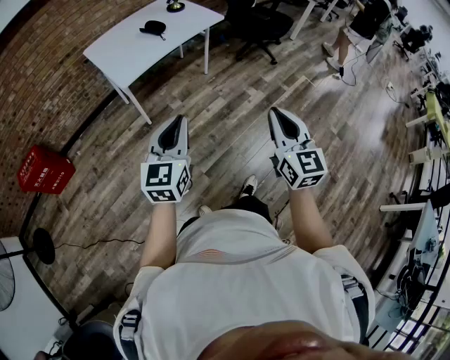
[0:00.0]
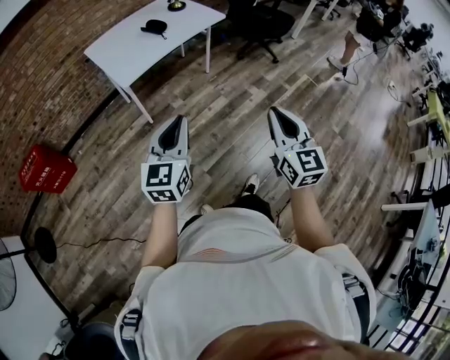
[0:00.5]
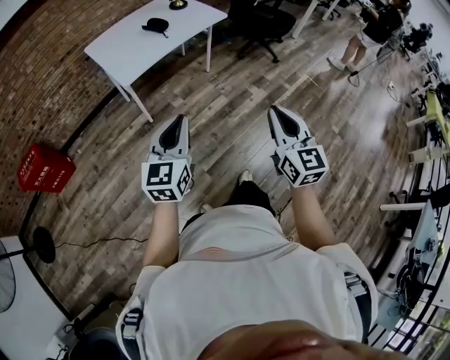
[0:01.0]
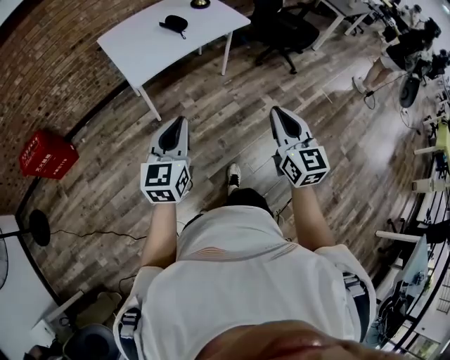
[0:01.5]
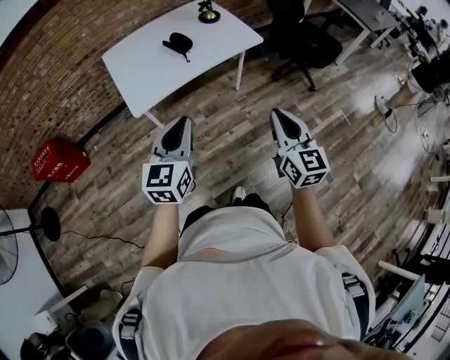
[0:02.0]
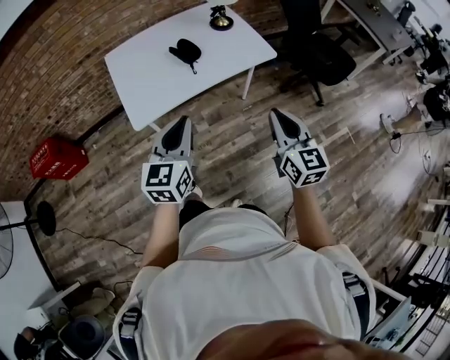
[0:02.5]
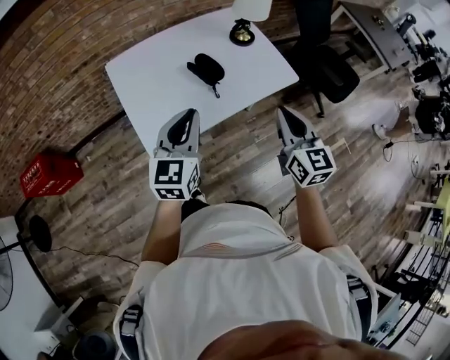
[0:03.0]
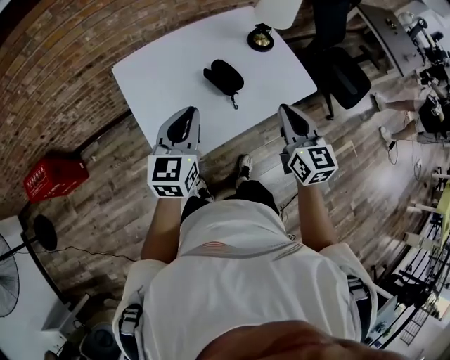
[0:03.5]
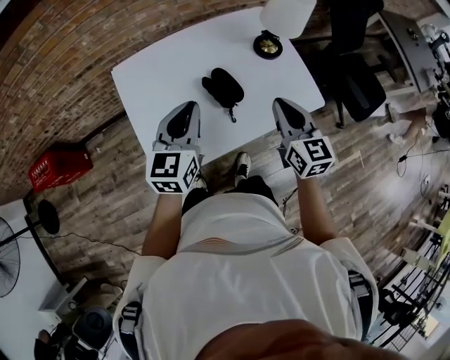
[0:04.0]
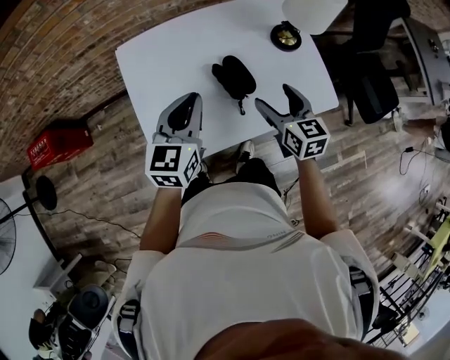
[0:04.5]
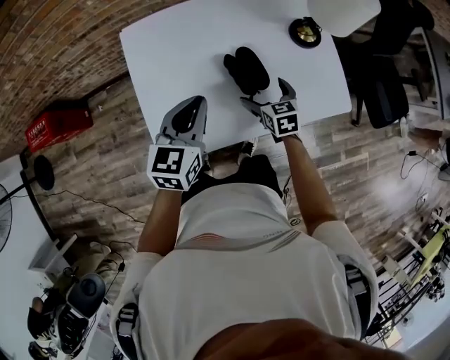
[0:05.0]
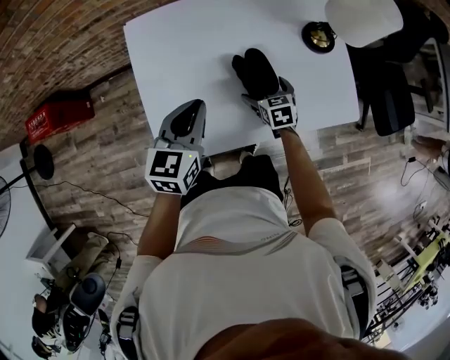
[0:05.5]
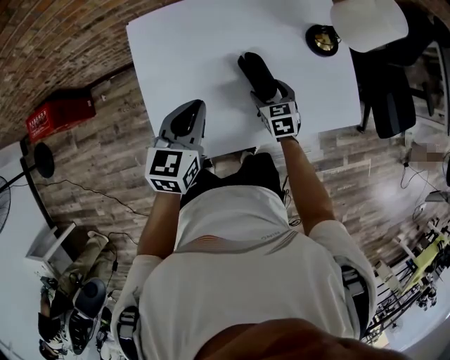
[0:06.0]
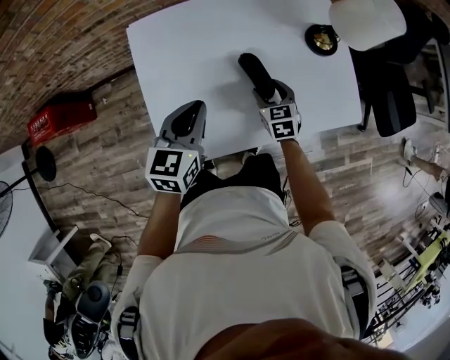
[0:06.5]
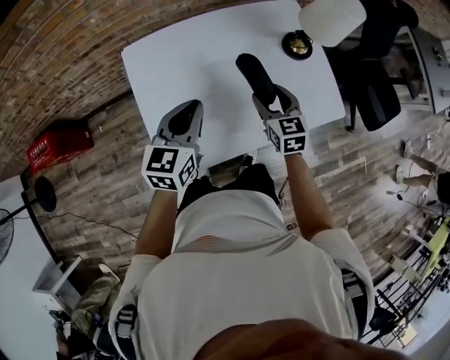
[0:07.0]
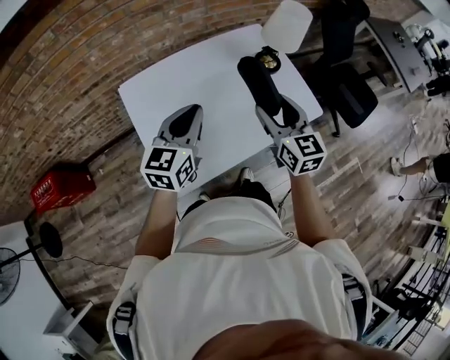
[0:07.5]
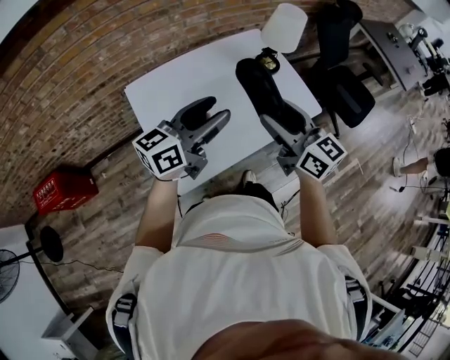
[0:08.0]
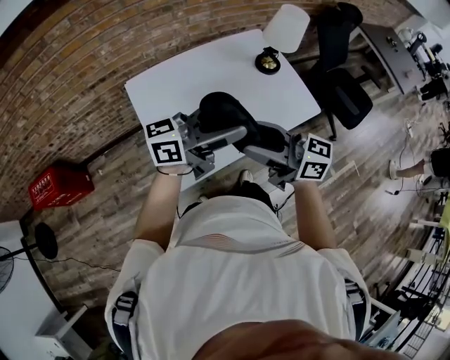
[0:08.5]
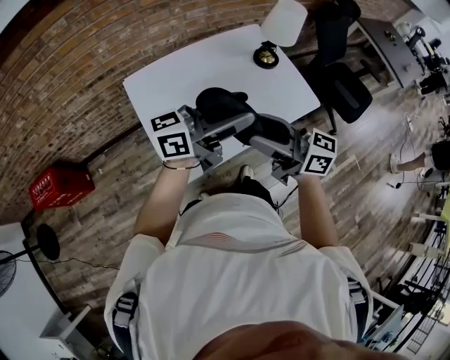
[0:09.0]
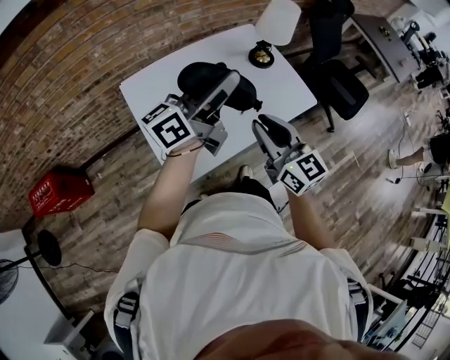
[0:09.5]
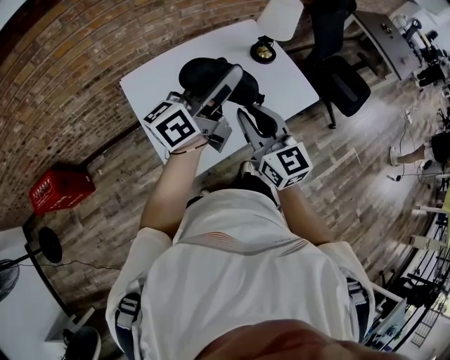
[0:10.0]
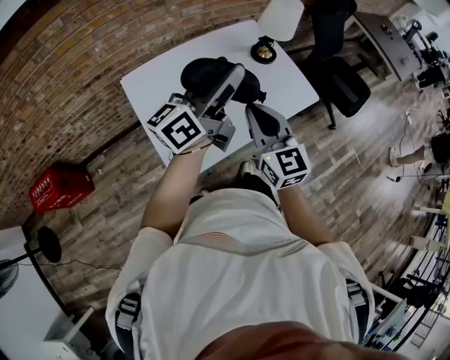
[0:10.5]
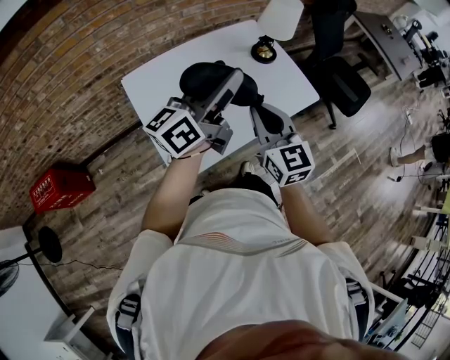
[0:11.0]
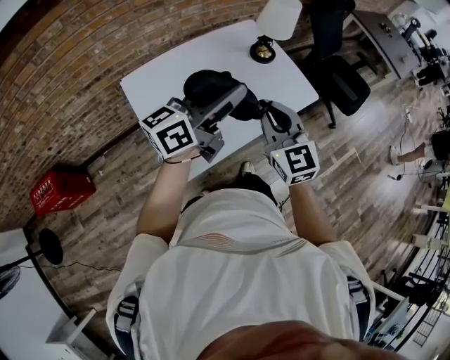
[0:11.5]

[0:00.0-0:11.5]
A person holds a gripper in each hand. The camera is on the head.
0:00.0 to 0:02.0: The grippers both shift forward by roughly 30 cm.
0:02.0 to 0:04.0: The two grippers travel together, forward, some 50 cm.
0:04.0 to 0:06.0: The left gripper travels downward and to the left by approximately 10 cm. Meanwhile the right gripper goes about 30 cm downward, tips its fingers downward by roughly 30 degrees, and opens up.
0:06.0 to 0:07.5: The left gripper moves upward, roughly 10 cm, and swivels approximately 20 degrees, while the right gripper shifts approximately 30 cm upward, and tips its fingers upward by roughly 30 degrees.
0:07.5 to 0:09.5: The right gripper shifts by approximately 15 cm, while the left gripper goes approximately 10 cm upward, tilts its fingers roughly 30 degrees upward, and opens.
0:09.5 to 0:11.5: The right gripper changes its angle by roughly 20 degrees.

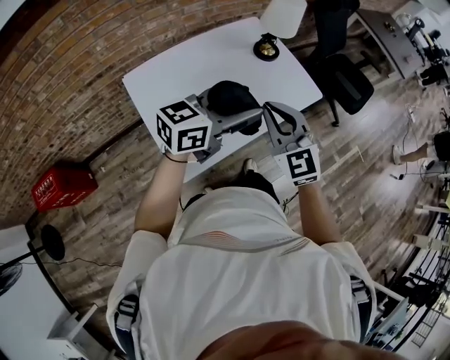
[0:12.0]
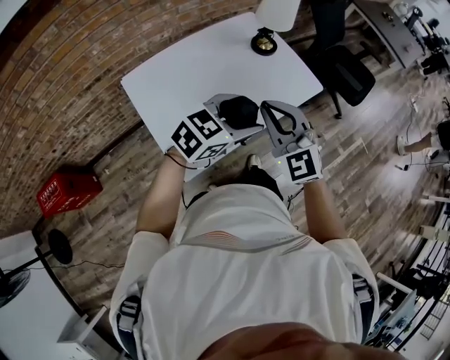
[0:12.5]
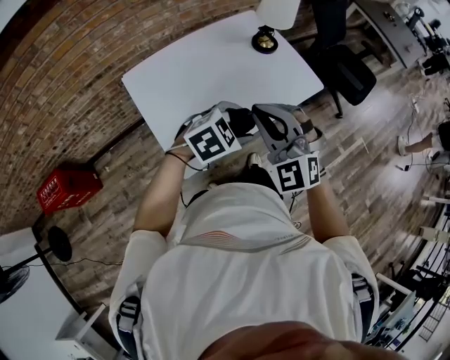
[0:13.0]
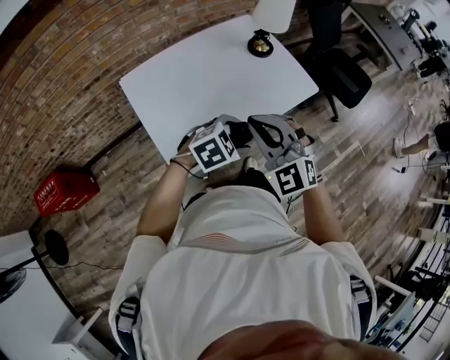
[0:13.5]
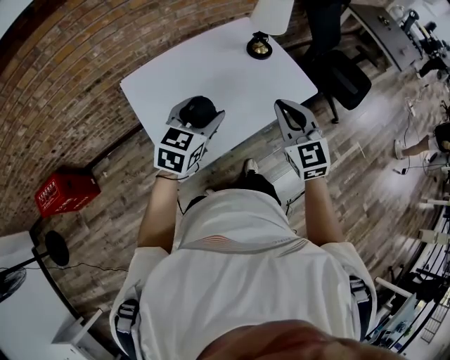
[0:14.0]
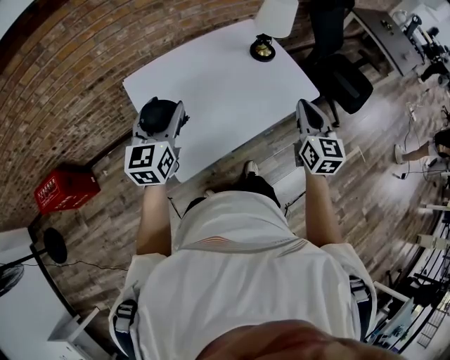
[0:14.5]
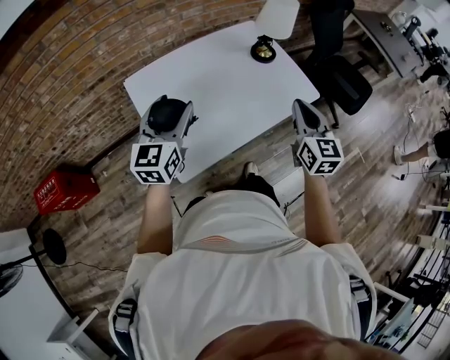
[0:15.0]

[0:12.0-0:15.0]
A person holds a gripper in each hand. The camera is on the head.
0:12.0 to 0:13.5: The right gripper goes some 5 cm backward, and rotates approximately 20 degrees. Meanwhile the left gripper moves downward, some 15 cm, and points its fingers roughly 50 degrees further downward.
0:13.5 to 0:15.0: The right gripper shifts approximately 15 cm to the right and forward, and twists some 50 degrees clockwise, seen from behind, while the left gripper travels to the left and upward by approximately 25 cm, and points its fingers about 40 degrees further upward.

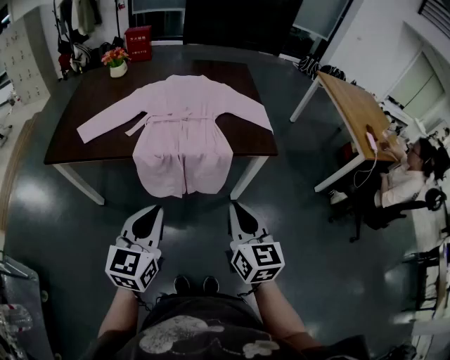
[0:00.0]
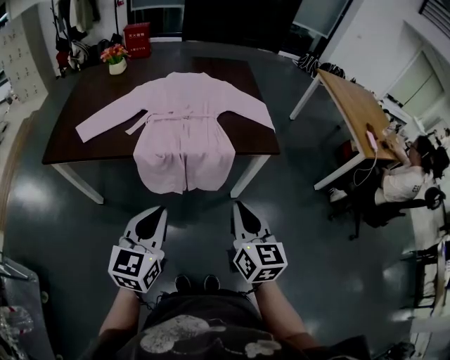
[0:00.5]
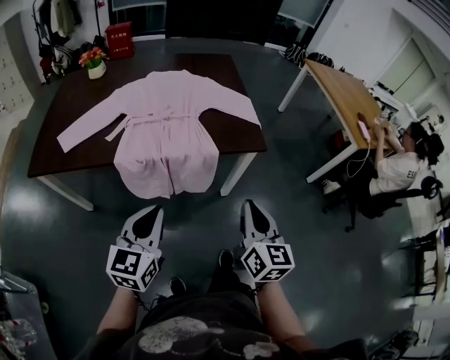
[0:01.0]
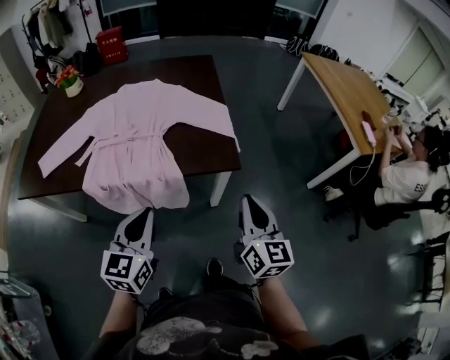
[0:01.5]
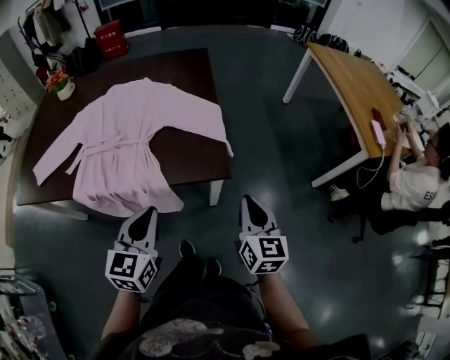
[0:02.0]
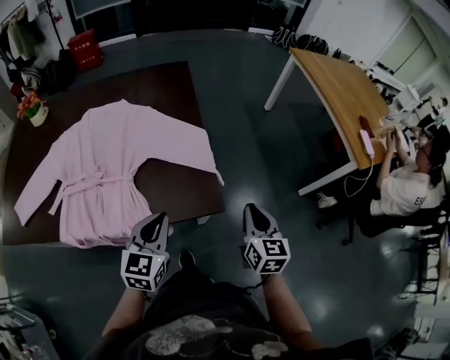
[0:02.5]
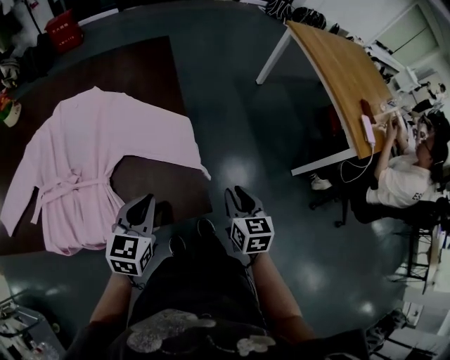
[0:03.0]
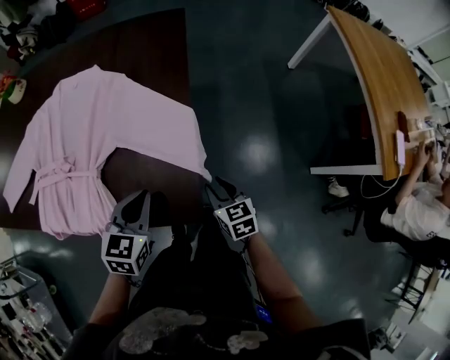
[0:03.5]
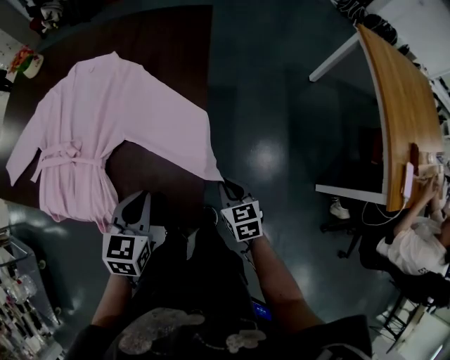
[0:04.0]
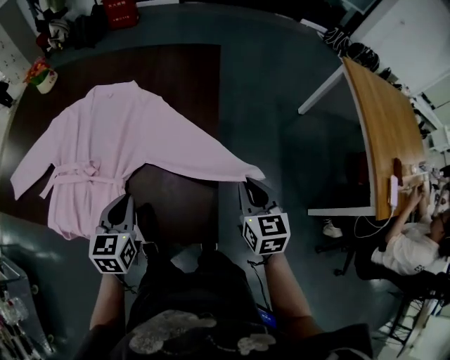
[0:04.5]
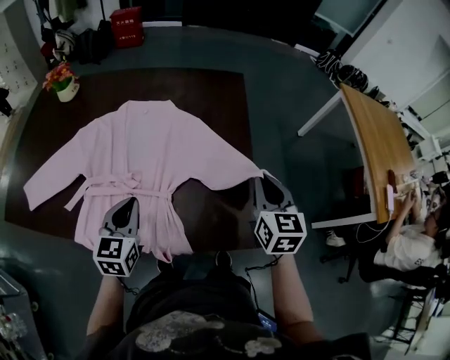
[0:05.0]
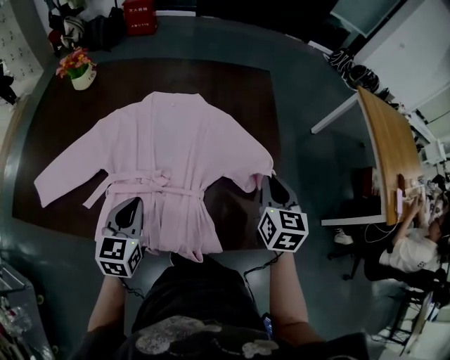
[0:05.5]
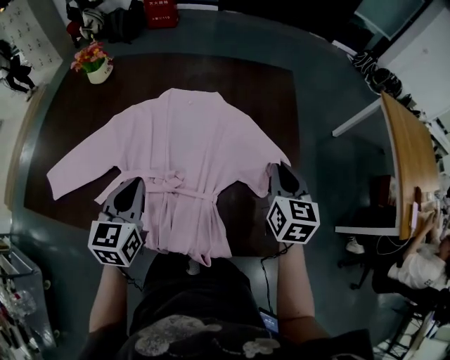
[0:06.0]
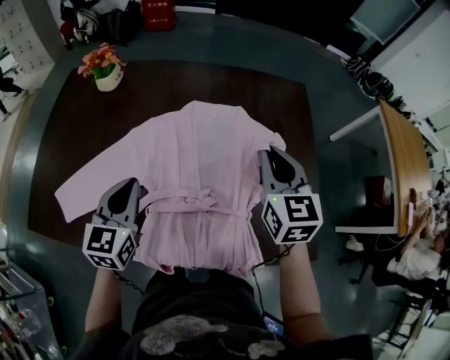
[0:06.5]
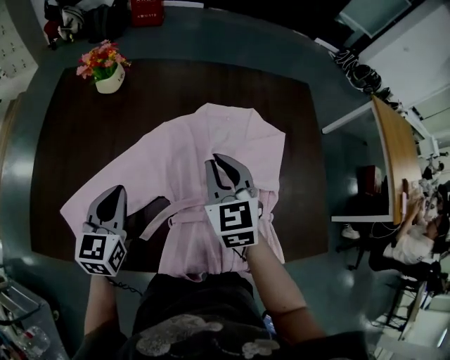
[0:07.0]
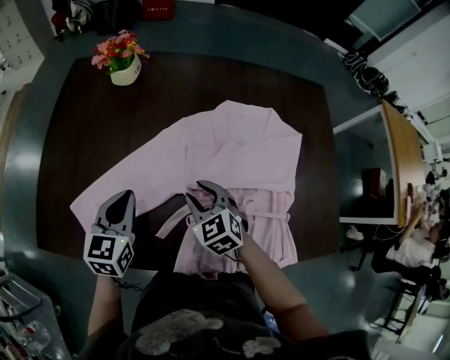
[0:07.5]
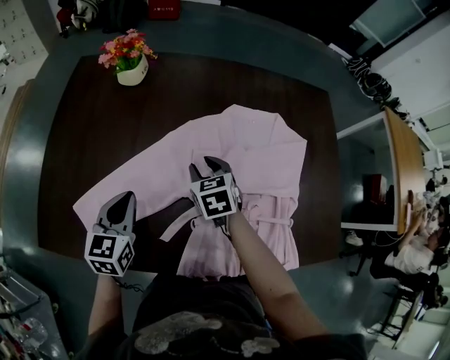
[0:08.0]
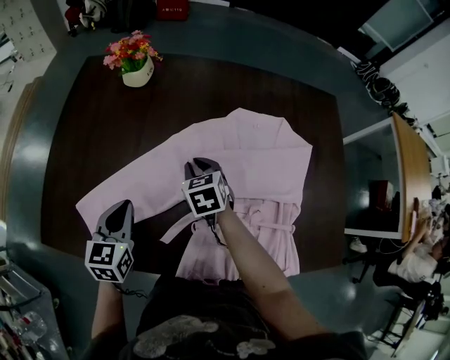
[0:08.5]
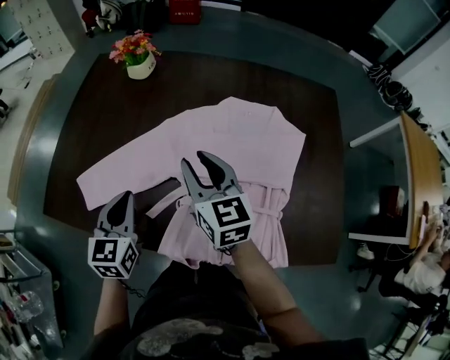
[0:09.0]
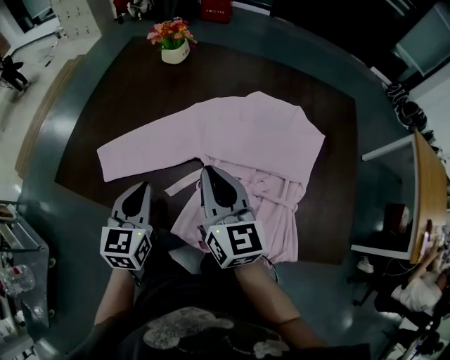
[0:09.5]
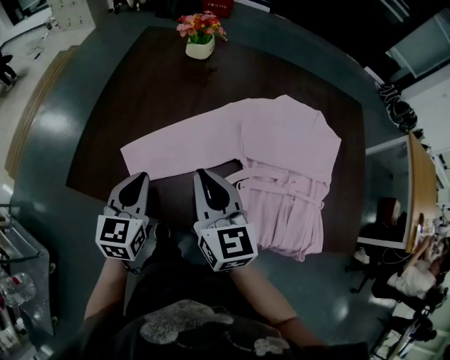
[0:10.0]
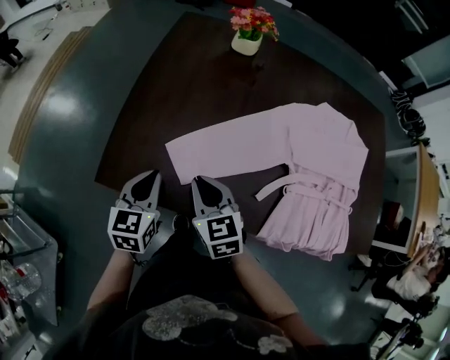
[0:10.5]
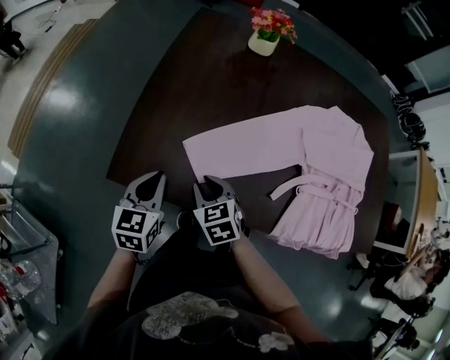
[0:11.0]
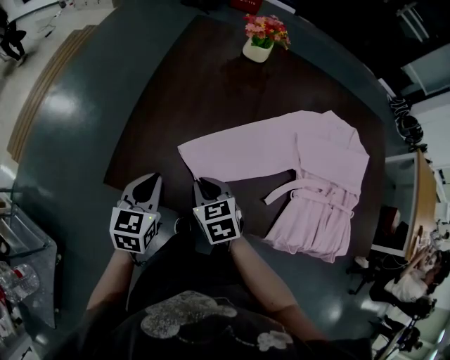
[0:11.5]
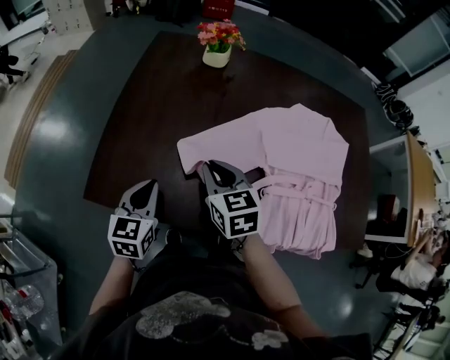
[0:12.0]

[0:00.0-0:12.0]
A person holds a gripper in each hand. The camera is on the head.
0:00.0 to 0:02.0: The left gripper is displaced forward and to the right by about 35 cm; the right gripper shifts some 40 cm to the right and forward.
0:02.0 to 0:04.0: The right gripper changes place by approximately 35 cm, and turns by approximately 40 degrees; the left gripper changes place by about 30 cm, and turns by roughly 20 degrees.
0:04.0 to 0:06.0: The left gripper moves to the left, some 35 cm; the right gripper shifts roughly 35 cm upward, to the left and forward, and swivels some 30 degrees.
0:06.0 to 0:08.0: The right gripper goes roughly 50 cm to the left, changes its angle by some 30 degrees, and opens its fingers. The left gripper heads to the left, covering some 30 cm.
0:08.0 to 0:10.0: The left gripper shifts some 15 cm to the left and backward. The right gripper moves to the left, backward and upward, roughly 30 cm, tips its fingers upward by approximately 30 degrees, and closes up.
0:10.0 to 0:12.0: The left gripper moves to the left, roughly 5 cm, while the right gripper is displaced forward and to the left by approximately 10 cm, travels downward and back again, about 20 cm each way, and turns by some 20 degrees.
